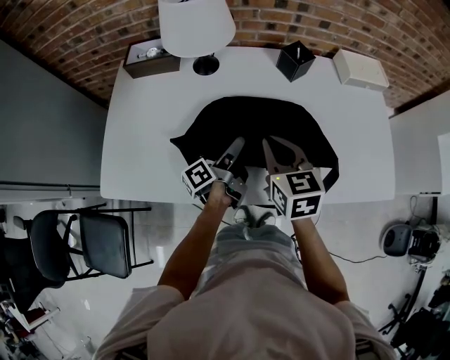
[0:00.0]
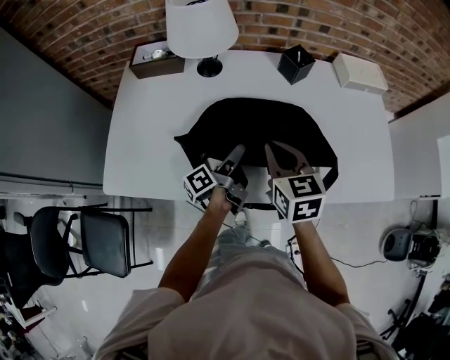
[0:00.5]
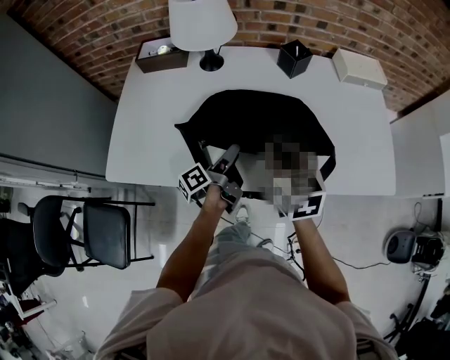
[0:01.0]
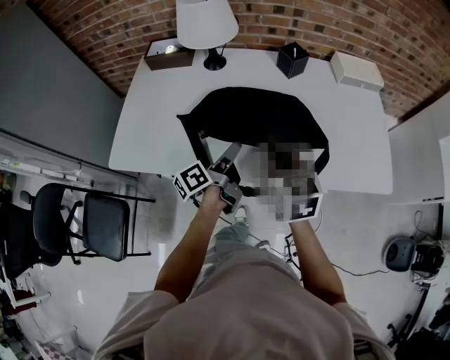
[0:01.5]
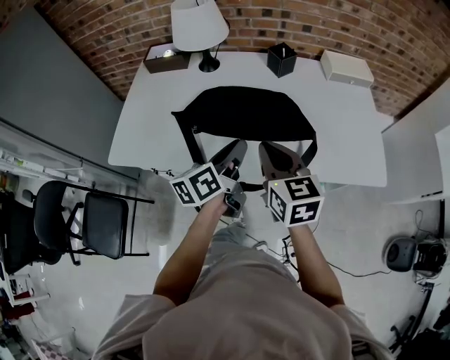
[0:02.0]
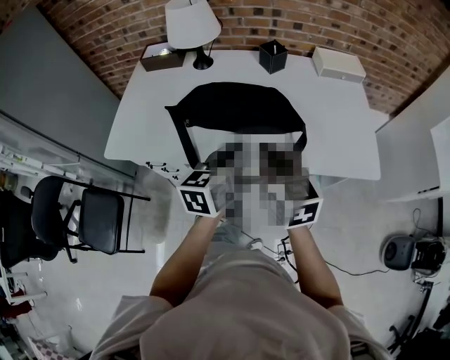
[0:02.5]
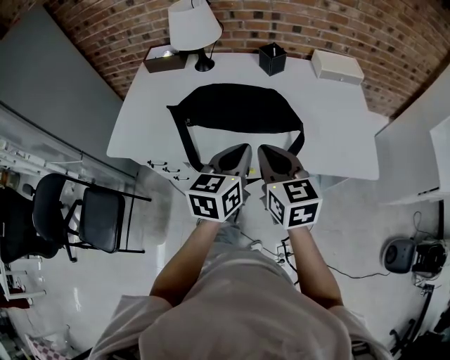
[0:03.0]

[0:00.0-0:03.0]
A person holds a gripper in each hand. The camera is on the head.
0:00.0 to 0:01.5: The right gripper shifts by approximately 10 cm.
0:01.5 to 0:03.0: The right gripper changes place by some 15 cm.

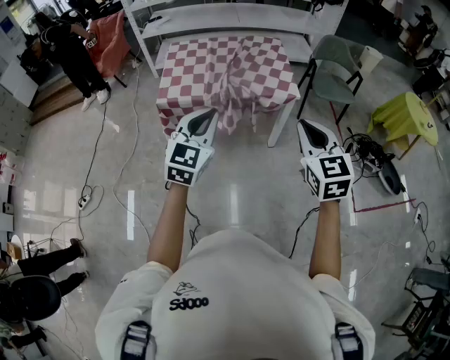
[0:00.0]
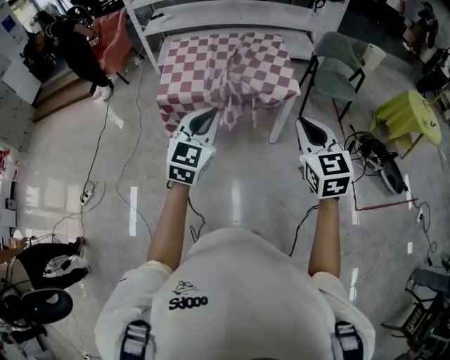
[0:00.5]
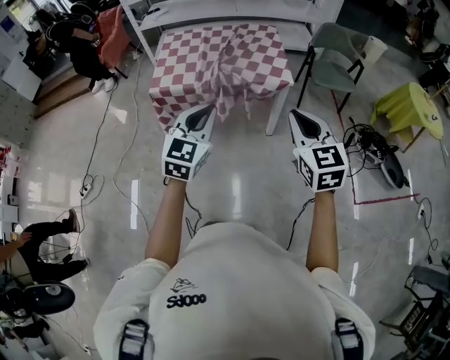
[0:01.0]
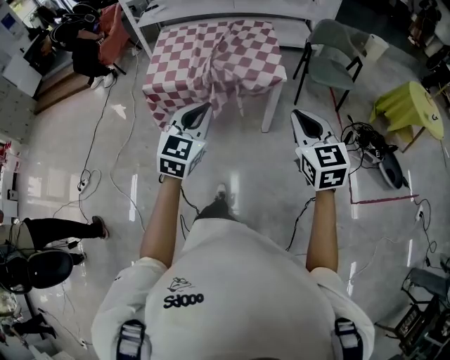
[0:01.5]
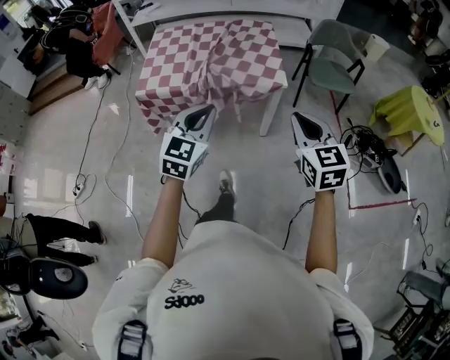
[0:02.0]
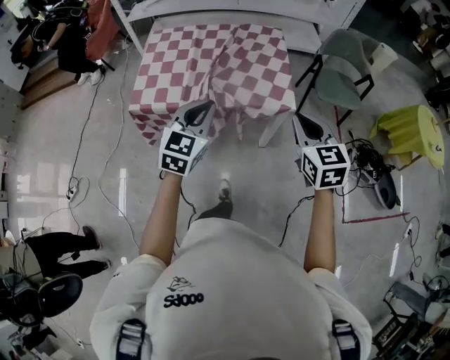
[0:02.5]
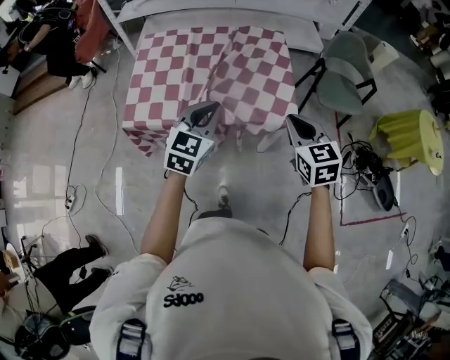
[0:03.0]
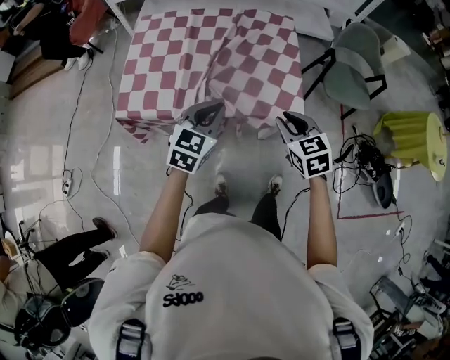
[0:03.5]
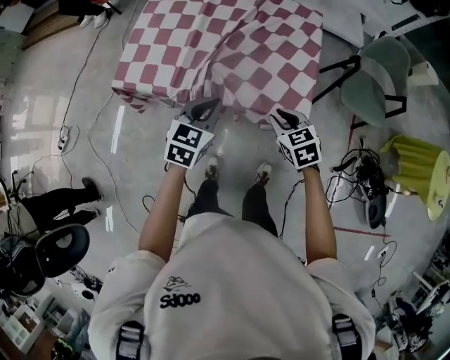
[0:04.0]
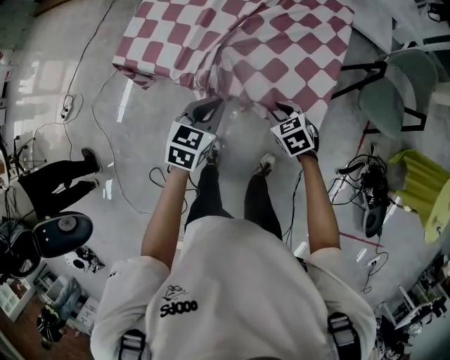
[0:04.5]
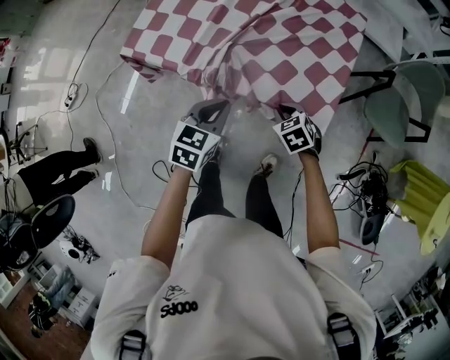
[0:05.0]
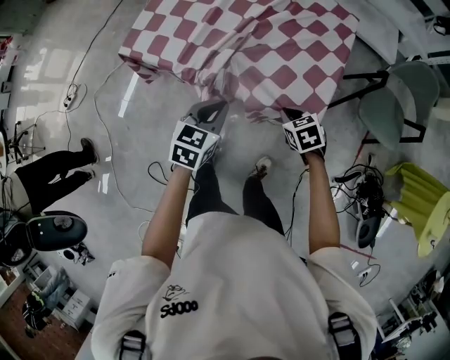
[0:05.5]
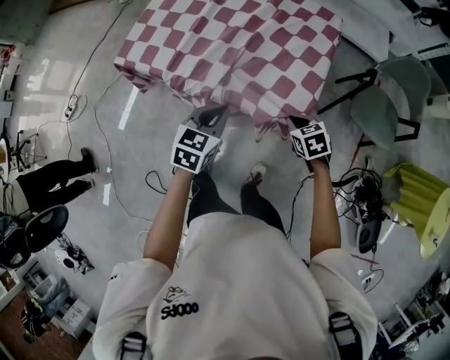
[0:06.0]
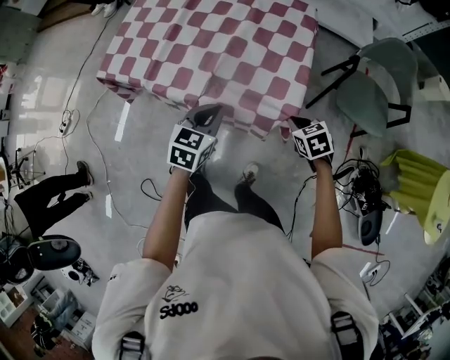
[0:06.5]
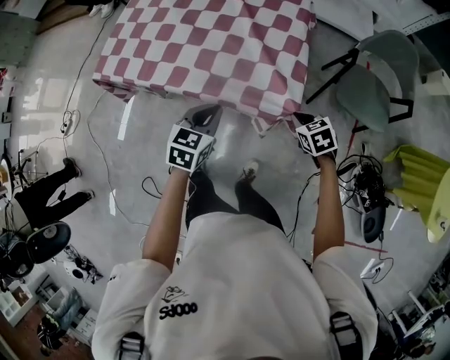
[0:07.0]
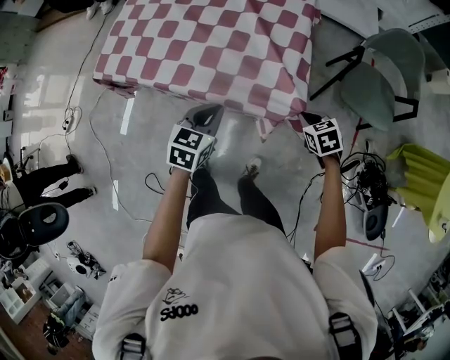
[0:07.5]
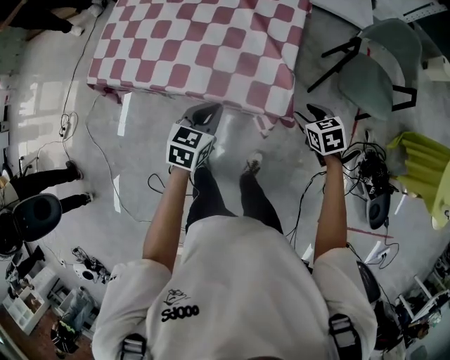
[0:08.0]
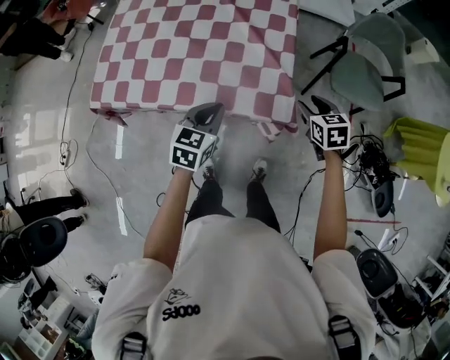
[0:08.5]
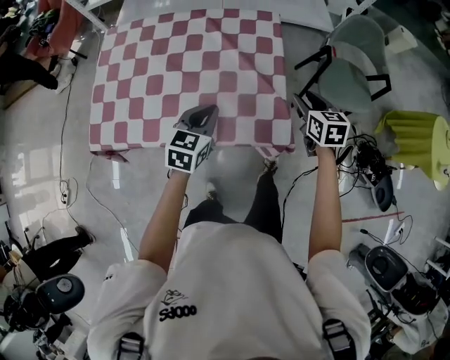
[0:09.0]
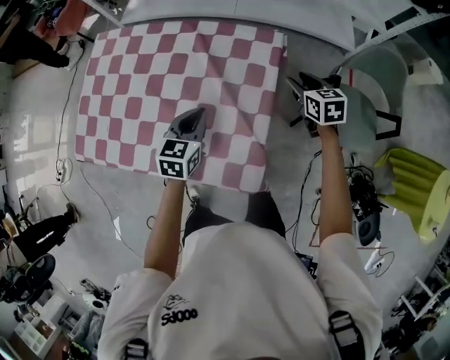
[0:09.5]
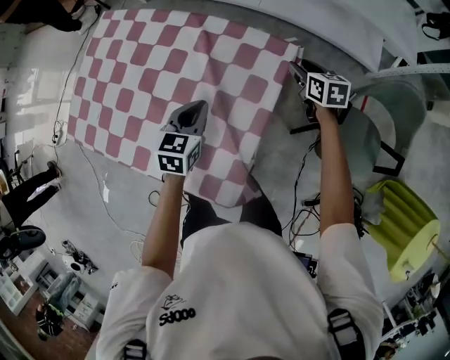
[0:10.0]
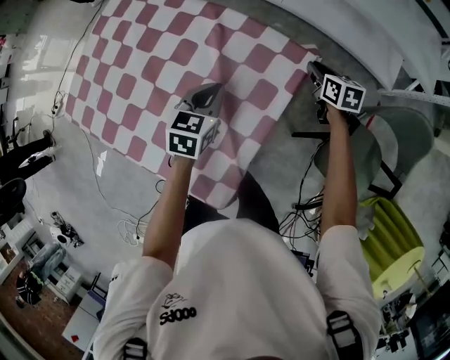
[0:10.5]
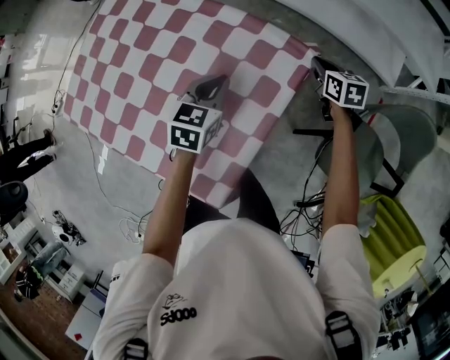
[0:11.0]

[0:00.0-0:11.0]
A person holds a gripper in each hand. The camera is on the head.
0:00.0 to 0:02.0: The right gripper heads to the right, forward and downward, covering about 15 cm. The left gripper is displaced to the right, downward and forward by about 15 cm.
0:02.0 to 0:03.5: The right gripper shifts some 35 cm forward and downward, and changes its angle by roughly 20 degrees, while the left gripper moves forward, approximately 30 cm.
0:03.5 to 0:05.5: The left gripper travels downward by approximately 10 cm, and swivels approximately 30 degrees. The right gripper heads downward, covering approximately 20 cm, and rotates roughly 30 degrees.
0:05.5 to 0:07.5: The left gripper is displaced to the right by some 15 cm. The right gripper heads to the right, covering approximately 20 cm.
0:07.5 to 0:09.0: The left gripper is displaced forward and to the left by some 15 cm; the right gripper travels upward and forward by some 15 cm, swivels about 40 degrees, and opens up.
0:09.0 to 0:11.0: The left gripper changes place by some 30 cm, and rotates about 30 degrees. Meanwhile the right gripper ends up approximately 50 cm from where it was, swivels approximately 30 degrees, and closes.

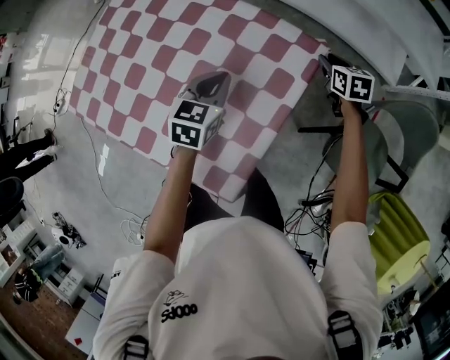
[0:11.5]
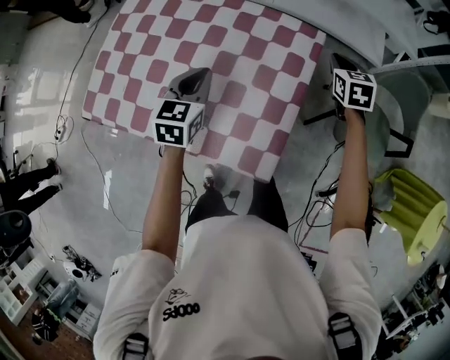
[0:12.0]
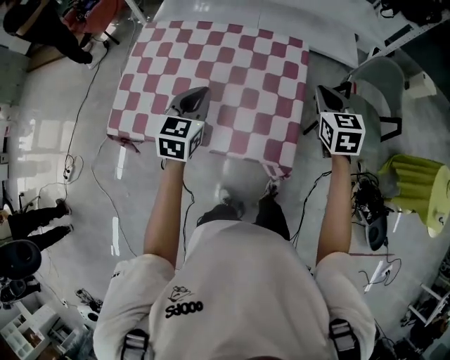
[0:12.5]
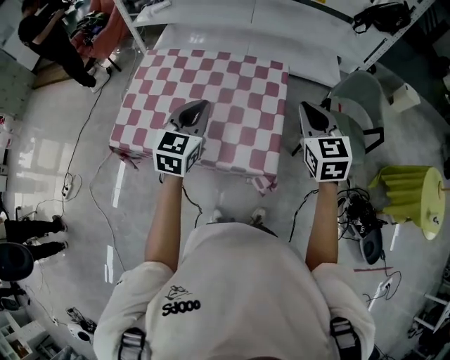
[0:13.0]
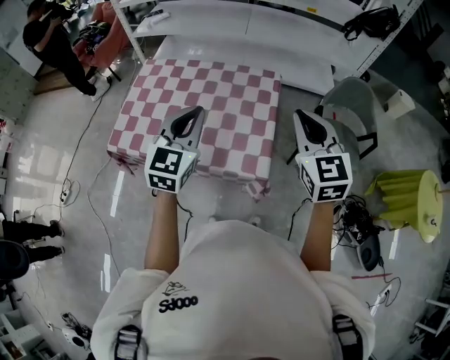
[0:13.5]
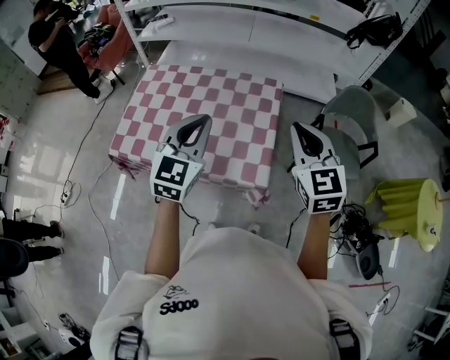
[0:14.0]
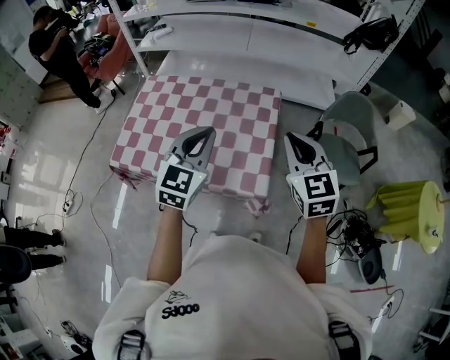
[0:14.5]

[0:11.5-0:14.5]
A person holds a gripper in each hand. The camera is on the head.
0:11.5 to 0:13.0: The right gripper shifts some 60 cm backward and upward, swivels about 40 degrees, and closes, while the left gripper goes roughly 40 cm backward, upward and to the left, and rotates about 30 degrees.
0:13.0 to 0:14.5: The left gripper shifts some 10 cm to the right and upward. The right gripper moves backward, roughly 5 cm.

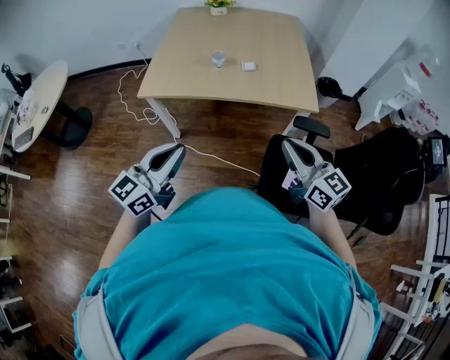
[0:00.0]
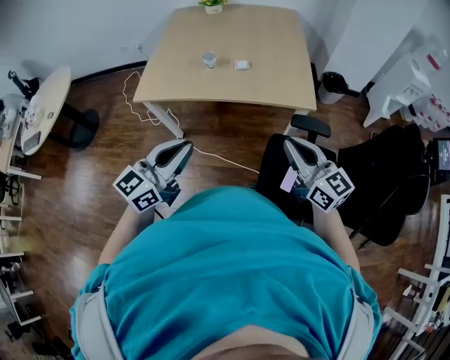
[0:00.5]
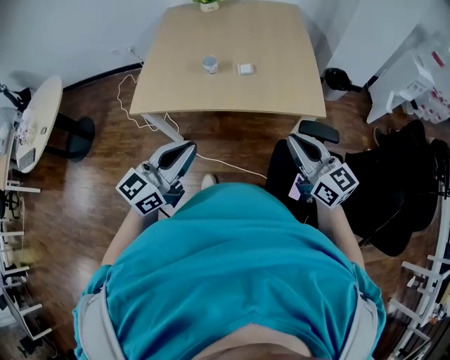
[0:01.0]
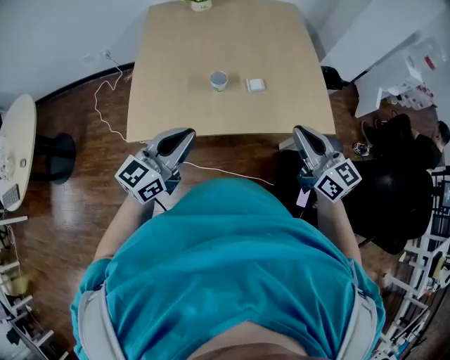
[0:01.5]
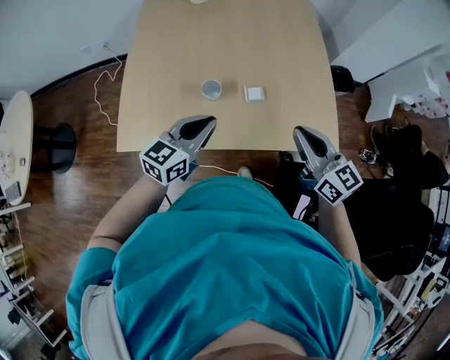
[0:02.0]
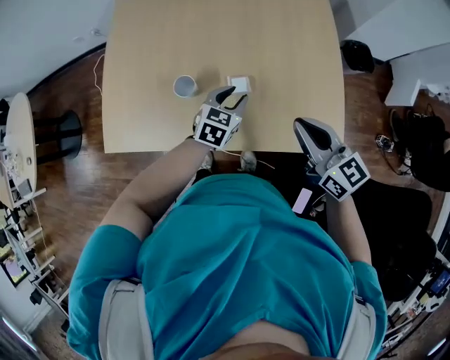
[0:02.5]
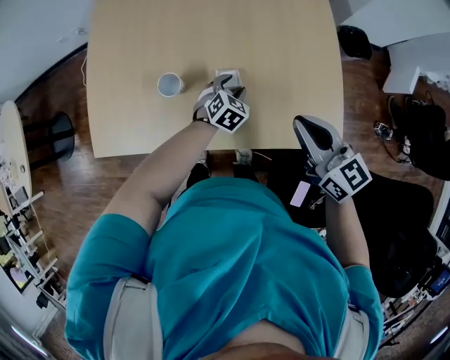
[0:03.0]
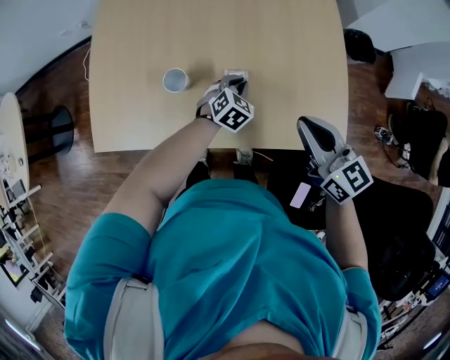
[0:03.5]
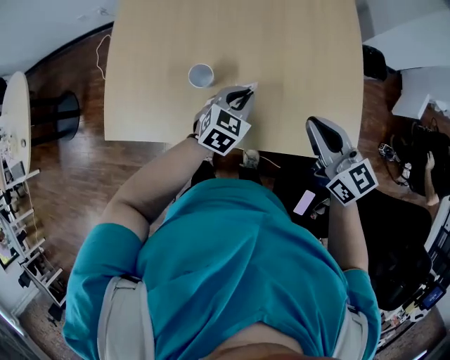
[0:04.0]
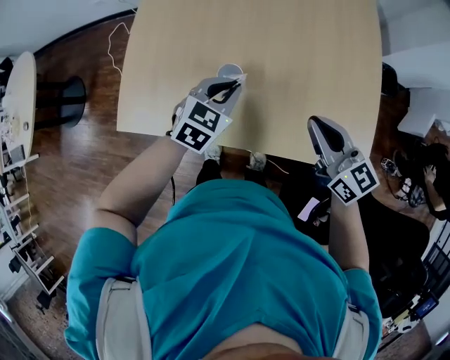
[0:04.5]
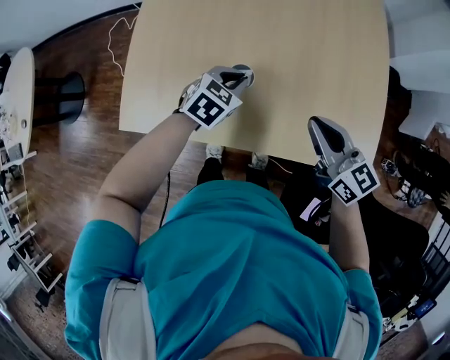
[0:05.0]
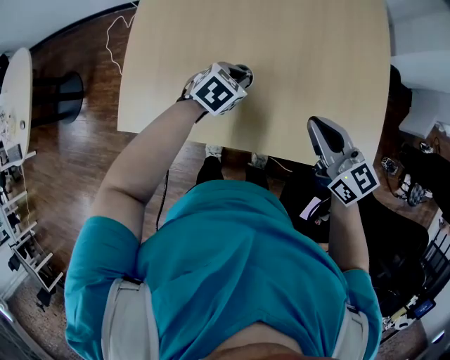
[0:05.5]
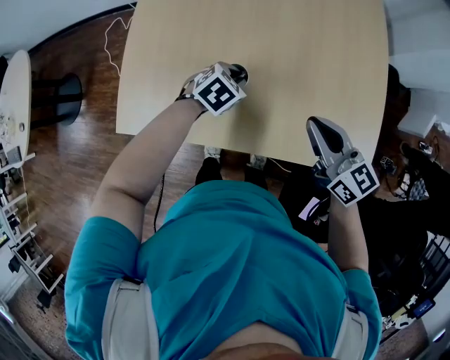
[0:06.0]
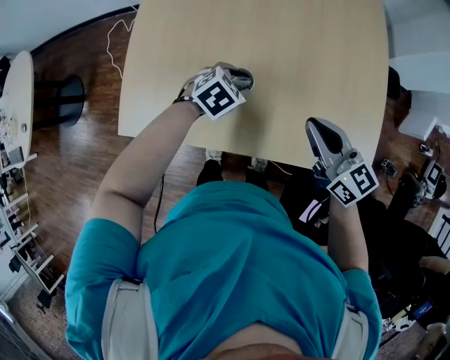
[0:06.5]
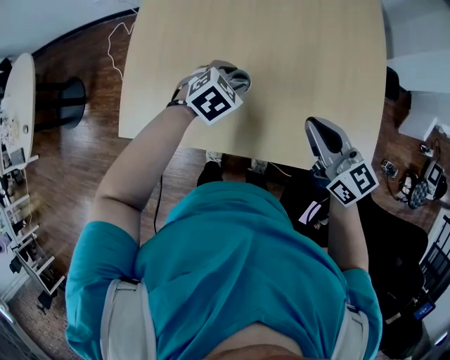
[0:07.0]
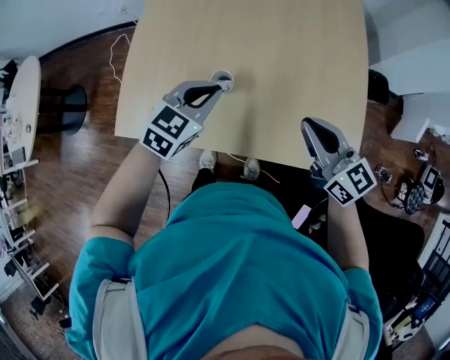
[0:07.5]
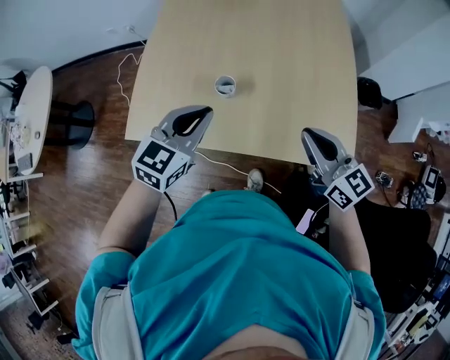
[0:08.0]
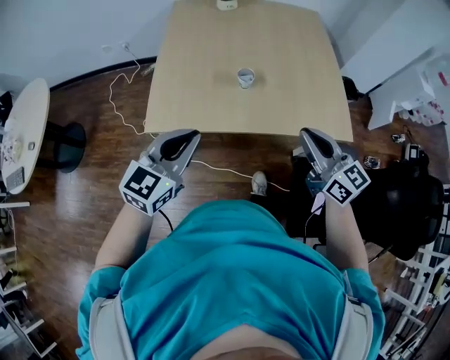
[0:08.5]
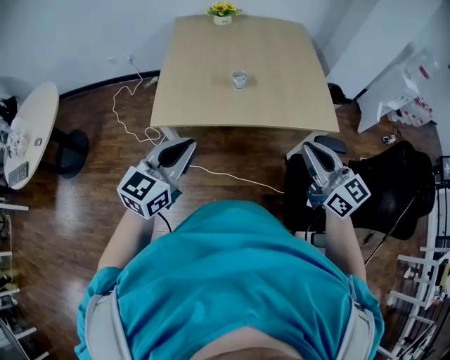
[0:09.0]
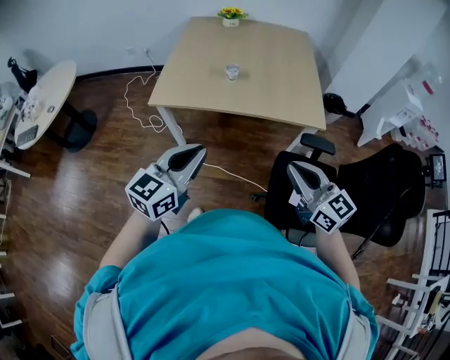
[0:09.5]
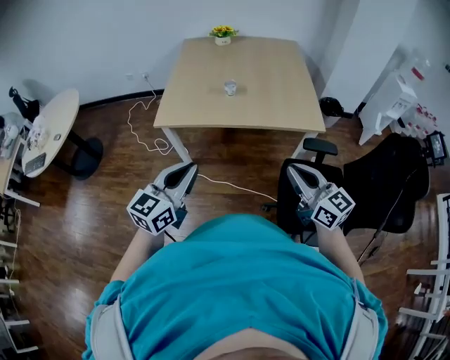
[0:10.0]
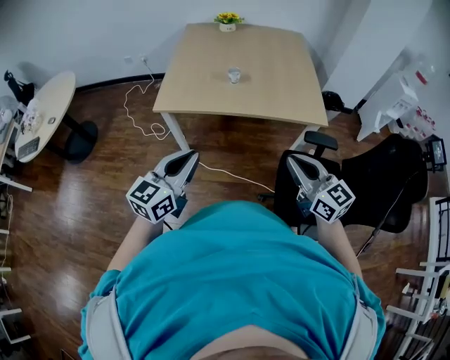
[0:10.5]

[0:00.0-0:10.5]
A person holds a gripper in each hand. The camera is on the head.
0:00.0 to 0:02.0: Both grippers travel together forward, about 40 cm.
0:02.0 to 0:04.0: The right gripper shifts roughly 10 cm downward and forward, while the left gripper goes about 25 cm downward, to the right and forward, swivels about 30 degrees, and opens and closes again.
0:04.0 to 0:06.5: The right gripper goes approximately 10 cm to the left. Meanwhile the left gripper moves to the left and forward, approximately 15 cm, changes its angle by about 20 degrees, and opens its fingers.
0:06.5 to 0:08.5: The right gripper shifts about 25 cm backward and upward. Meanwhile the left gripper is displaced backward, upward and to the left by roughly 40 cm, points its fingers approximately 50 degrees further upward, and closes.
0:08.5 to 0:10.5: Both grippers move backward, roughly 25 cm.
